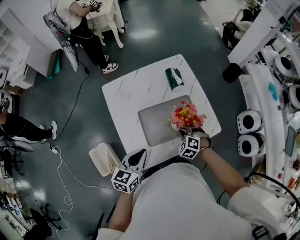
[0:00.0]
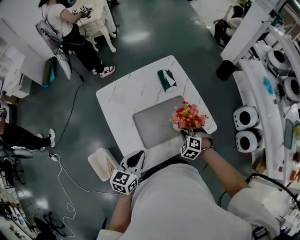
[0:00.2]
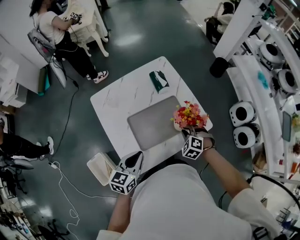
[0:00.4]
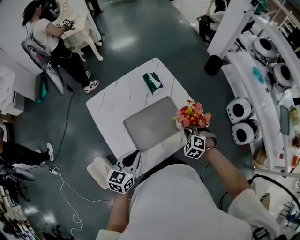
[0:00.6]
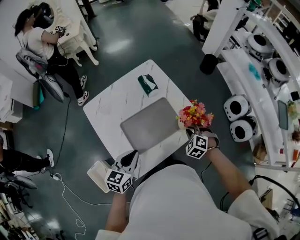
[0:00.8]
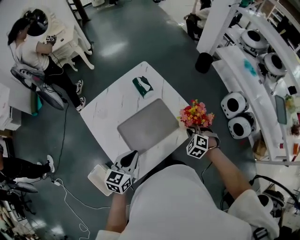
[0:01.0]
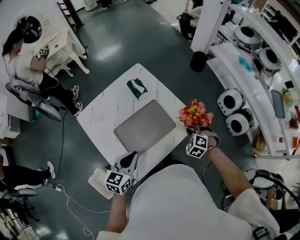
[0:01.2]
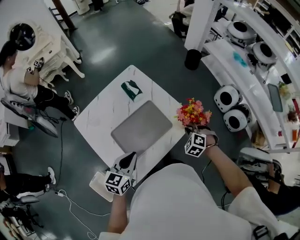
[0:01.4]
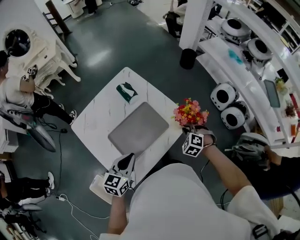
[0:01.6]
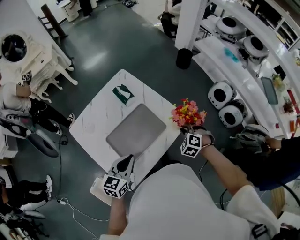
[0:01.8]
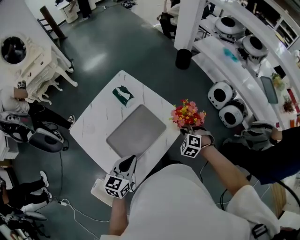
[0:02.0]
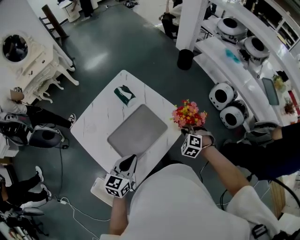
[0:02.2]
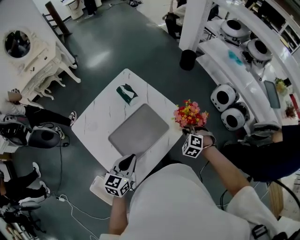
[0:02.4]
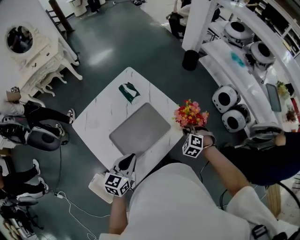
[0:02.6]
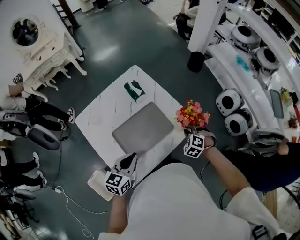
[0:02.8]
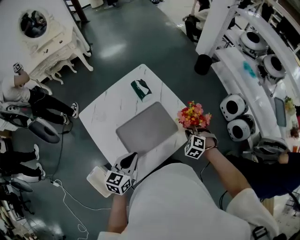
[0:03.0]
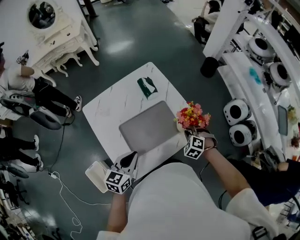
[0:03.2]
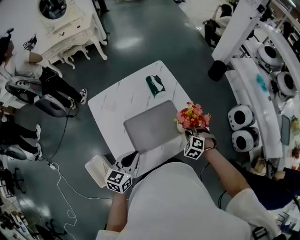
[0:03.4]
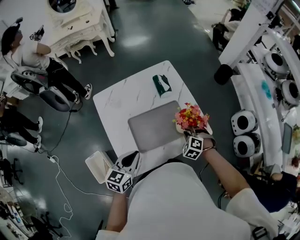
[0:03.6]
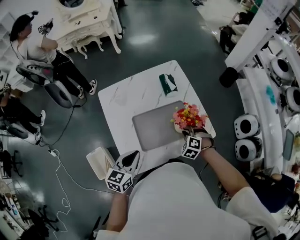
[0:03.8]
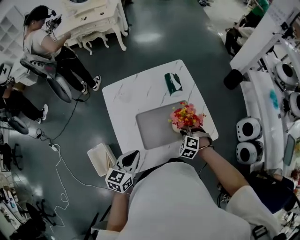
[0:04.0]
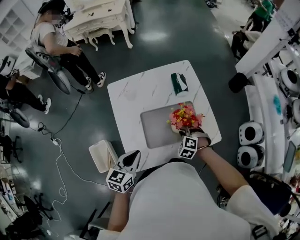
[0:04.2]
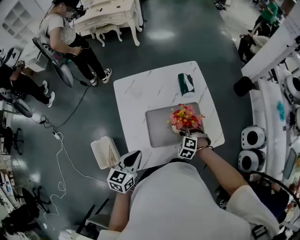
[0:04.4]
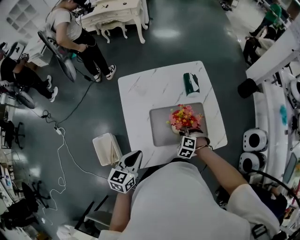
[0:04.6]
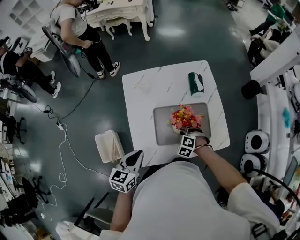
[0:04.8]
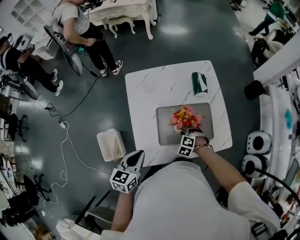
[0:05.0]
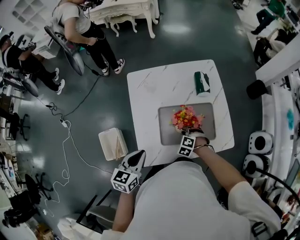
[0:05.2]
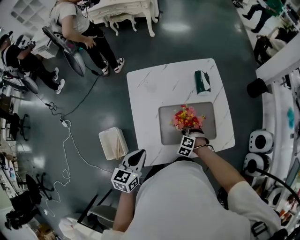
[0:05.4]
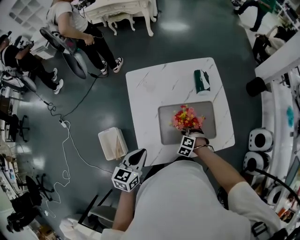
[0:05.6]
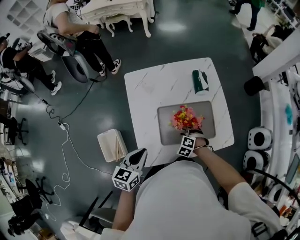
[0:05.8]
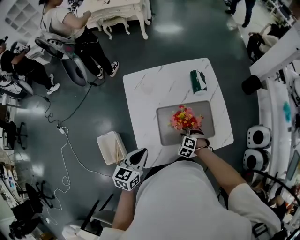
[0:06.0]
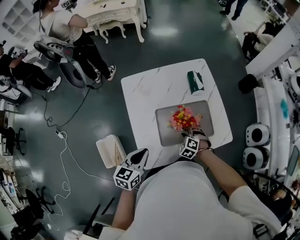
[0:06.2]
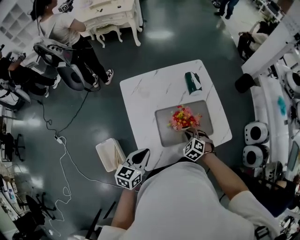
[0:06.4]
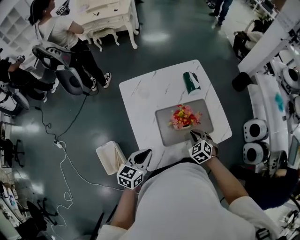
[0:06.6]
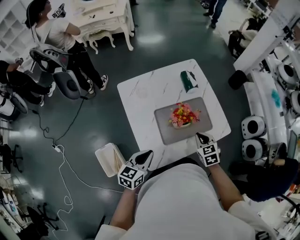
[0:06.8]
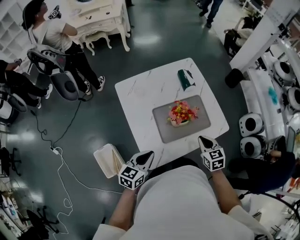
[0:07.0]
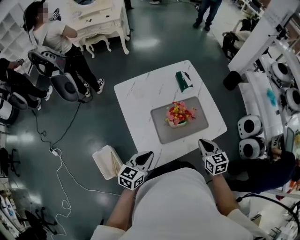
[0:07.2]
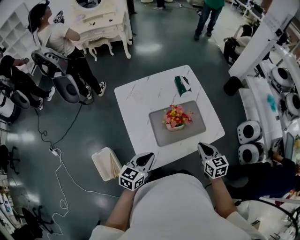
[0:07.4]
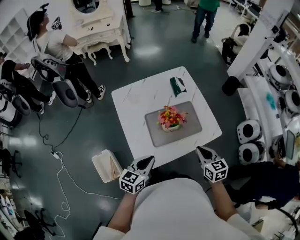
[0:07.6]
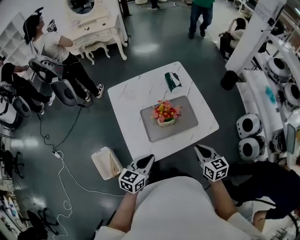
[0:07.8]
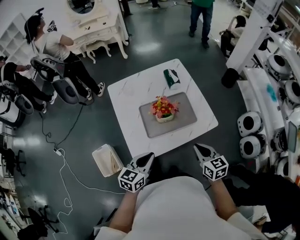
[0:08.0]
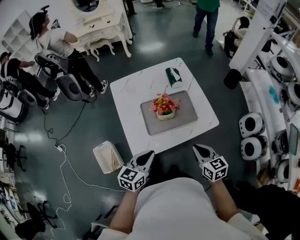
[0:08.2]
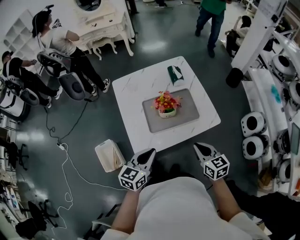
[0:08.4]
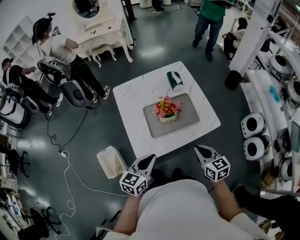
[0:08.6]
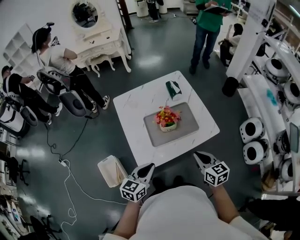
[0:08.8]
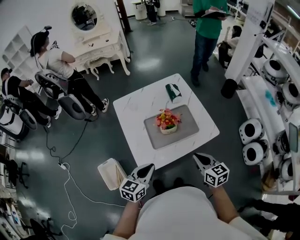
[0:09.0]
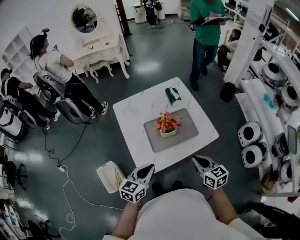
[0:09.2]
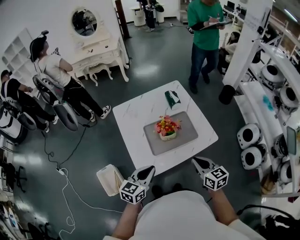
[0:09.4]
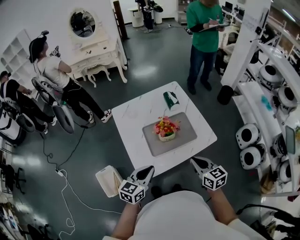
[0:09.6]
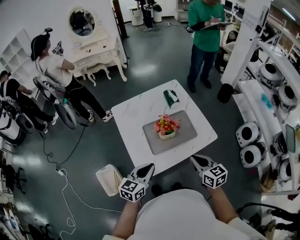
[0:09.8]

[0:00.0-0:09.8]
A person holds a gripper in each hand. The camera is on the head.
0:00.0 to 0:01.4: The right gripper shifts some 20 cm to the right, and changes its angle by approximately 20 degrees, while the left gripper travels to the right and forward by some 10 cm, and turns by approximately 20 degrees.
0:01.4 to 0:02.8: There are only small adjustments of the grippers.
0:02.8 to 0:04.2: The right gripper ends up roughly 20 cm from where it was, and swivels about 30 degrees; the left gripper changes place by some 10 cm, and turns by about 20 degrees.
0:04.2 to 0:05.6: The right gripper goes roughly 10 cm to the left and downward. Meanwhile the left gripper heads to the left, covering about 5 cm.
0:05.6 to 0:07.0: The right gripper moves upward, backward and to the right, approximately 20 cm, and twists approximately 60 degrees clockwise, seen from behind; the left gripper changes its angle by approximately 20 degrees.
0:07.0 to 0:08.4: The right gripper travels backward, to the right and upward by roughly 15 cm, while the left gripper travels to the right, backward and upward by approximately 15 cm.
0:08.4 to 0:09.8: The right gripper shifts by about 5 cm.

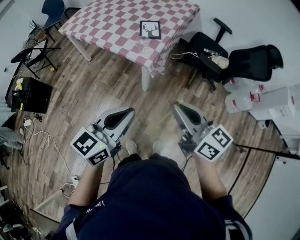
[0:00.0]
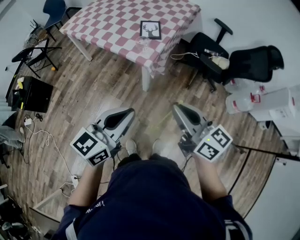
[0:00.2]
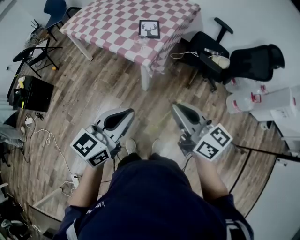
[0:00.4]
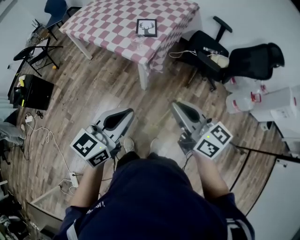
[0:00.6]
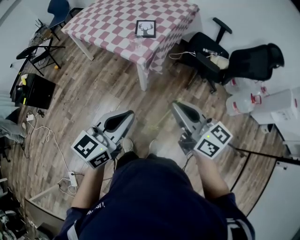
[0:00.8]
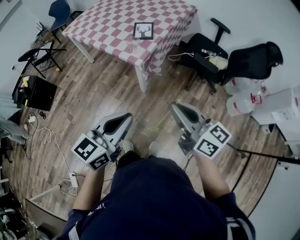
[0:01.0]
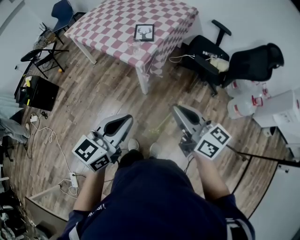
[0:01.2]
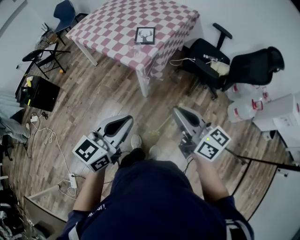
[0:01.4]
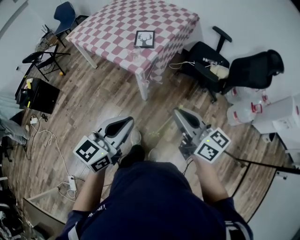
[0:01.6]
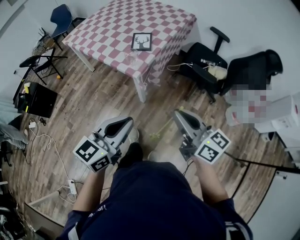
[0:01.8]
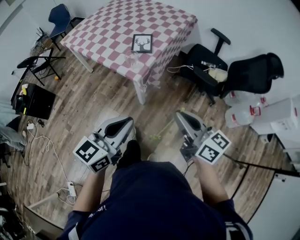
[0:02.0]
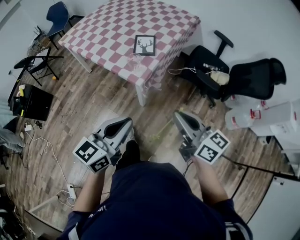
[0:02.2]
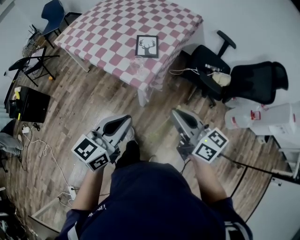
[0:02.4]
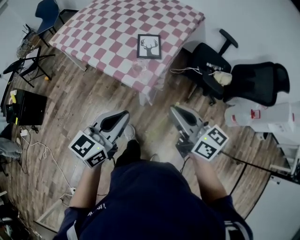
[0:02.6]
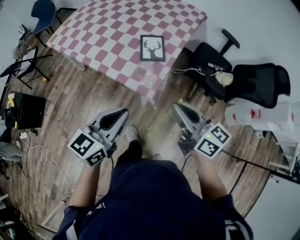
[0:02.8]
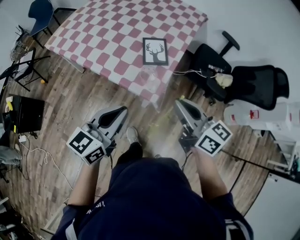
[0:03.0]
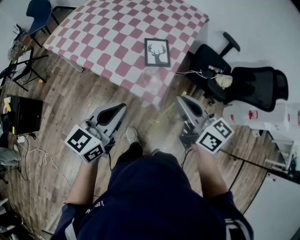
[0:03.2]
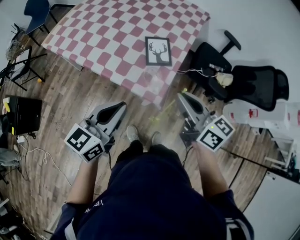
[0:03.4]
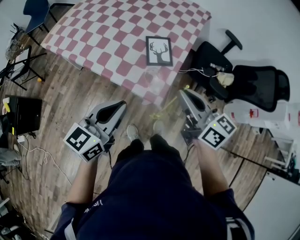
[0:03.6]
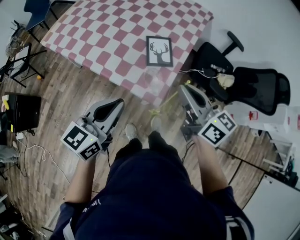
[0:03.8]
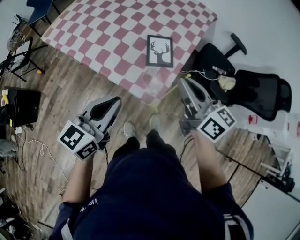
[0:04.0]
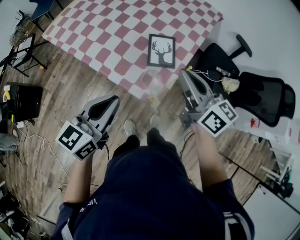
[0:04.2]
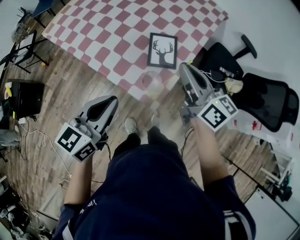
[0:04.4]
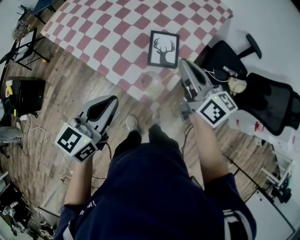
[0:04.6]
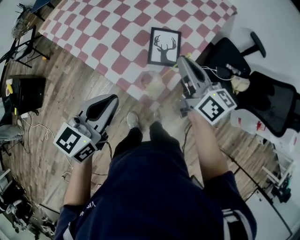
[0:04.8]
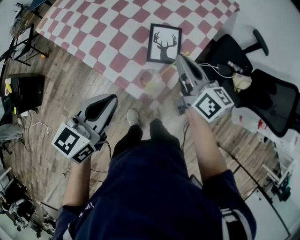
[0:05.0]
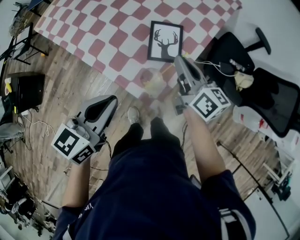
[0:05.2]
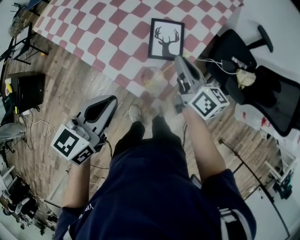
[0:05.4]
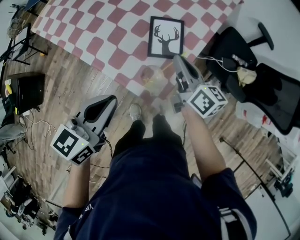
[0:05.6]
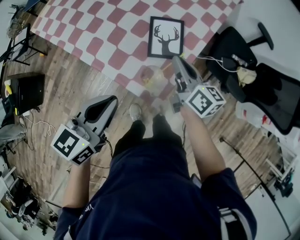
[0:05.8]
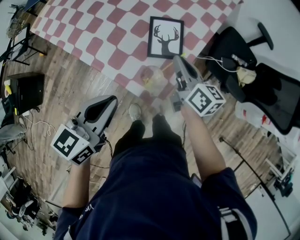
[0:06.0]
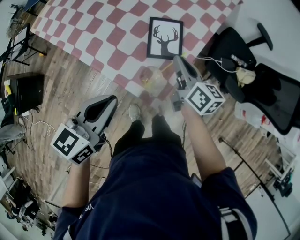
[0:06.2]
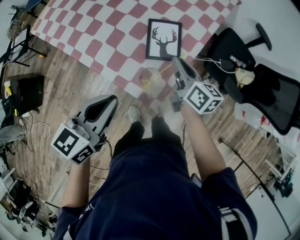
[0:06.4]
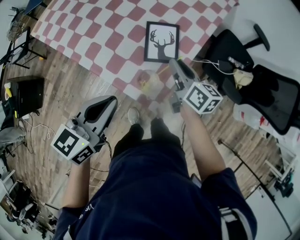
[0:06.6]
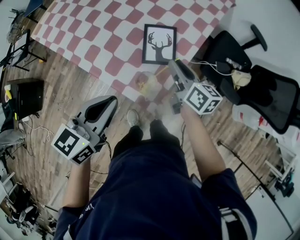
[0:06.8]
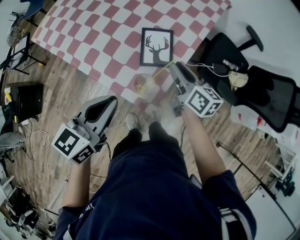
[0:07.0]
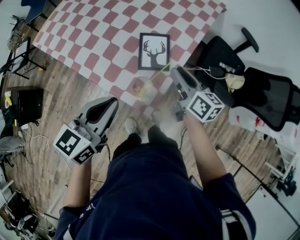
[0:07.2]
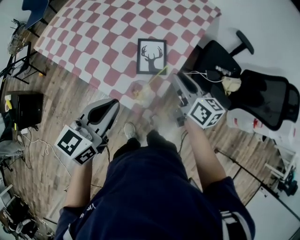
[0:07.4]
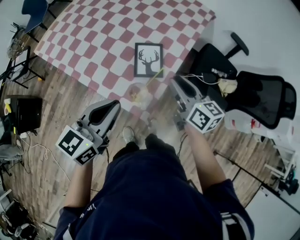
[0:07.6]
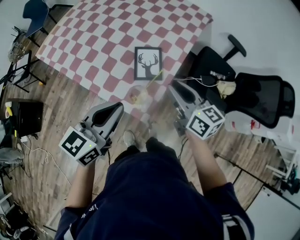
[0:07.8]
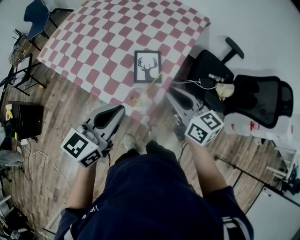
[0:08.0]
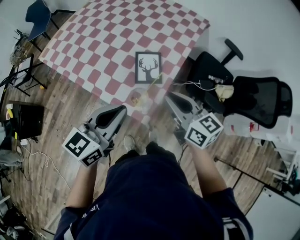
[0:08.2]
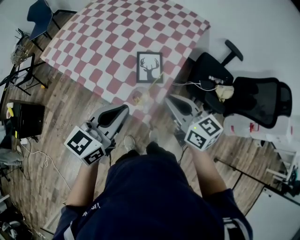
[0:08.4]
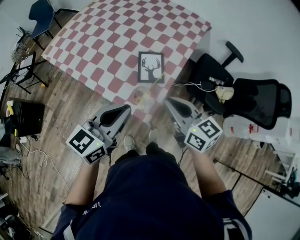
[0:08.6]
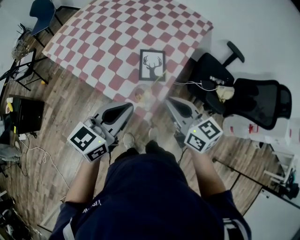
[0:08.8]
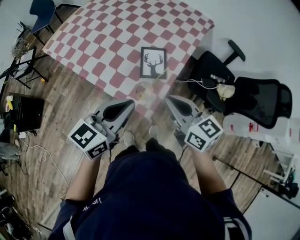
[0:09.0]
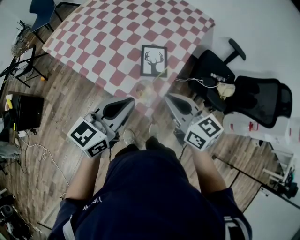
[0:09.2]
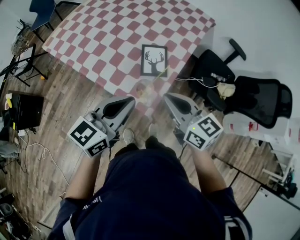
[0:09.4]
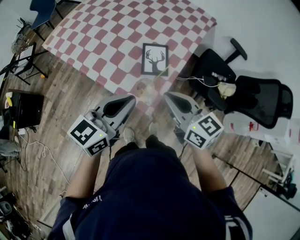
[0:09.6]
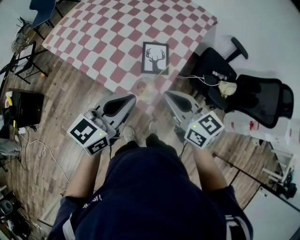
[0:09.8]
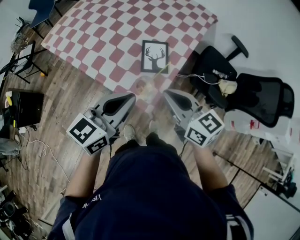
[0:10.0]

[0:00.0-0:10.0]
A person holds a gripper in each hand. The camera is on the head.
0:00.0 to 0:01.4: The grippers both shift to the right by about 10 cm.
0:01.4 to 0:02.8: Both grippers move forward and to the left, some 30 cm.
0:02.8 to 0:04.2: The left gripper travels forward and to the left by some 15 cm. Meanwhile the right gripper heads forward, covering approximately 20 cm.
0:04.2 to 0:05.8: The left gripper goes roughly 5 cm downward. The right gripper goes roughly 20 cm downward and forward.
0:05.8 to 0:07.2: The right gripper ends up some 5 cm from where it was, and opens its fingers. The left gripper moves roughly 5 cm.
0:07.2 to 0:08.6: The right gripper moves backward and upward, roughly 15 cm, turns by some 20 degrees, and closes, while the left gripper ends up some 5 cm from where it was.
0:08.6 to 0:10.0: The grippers stay close to where they were, moving slightly.

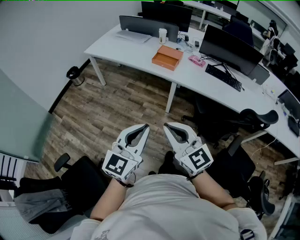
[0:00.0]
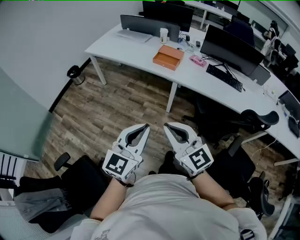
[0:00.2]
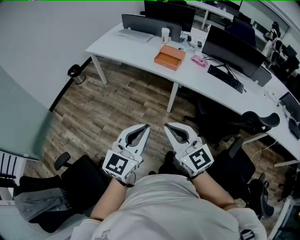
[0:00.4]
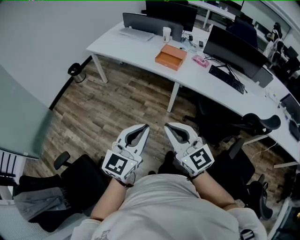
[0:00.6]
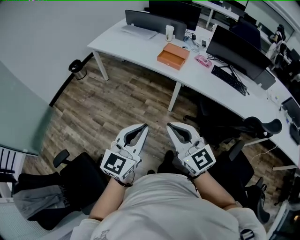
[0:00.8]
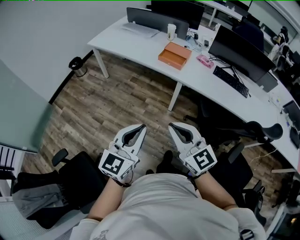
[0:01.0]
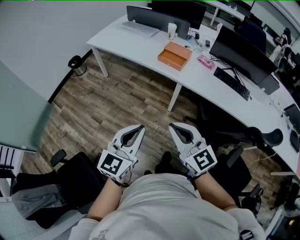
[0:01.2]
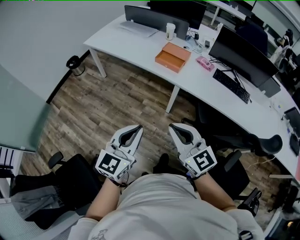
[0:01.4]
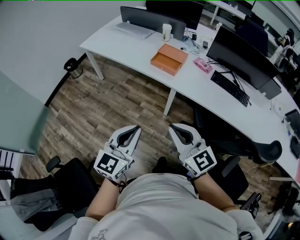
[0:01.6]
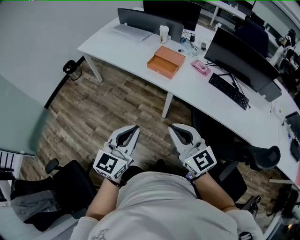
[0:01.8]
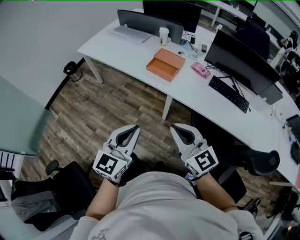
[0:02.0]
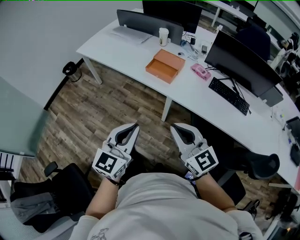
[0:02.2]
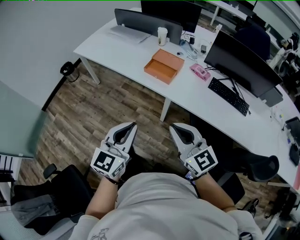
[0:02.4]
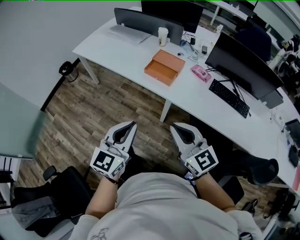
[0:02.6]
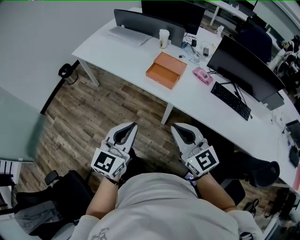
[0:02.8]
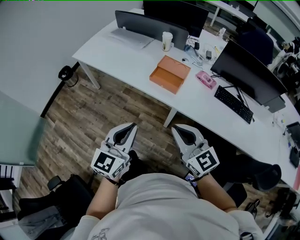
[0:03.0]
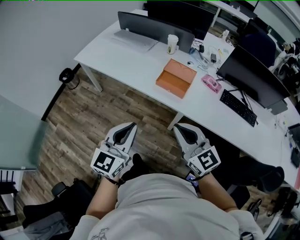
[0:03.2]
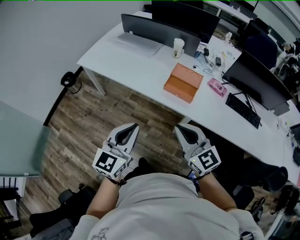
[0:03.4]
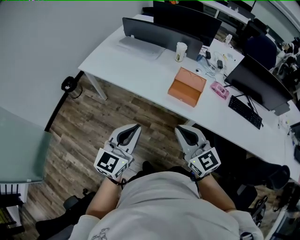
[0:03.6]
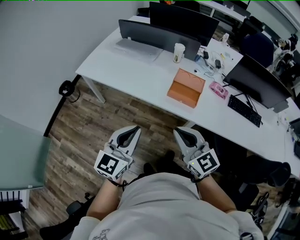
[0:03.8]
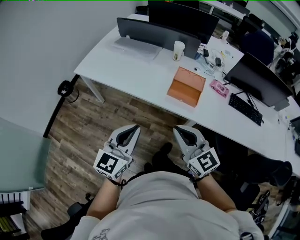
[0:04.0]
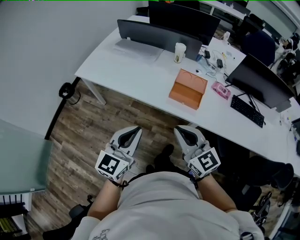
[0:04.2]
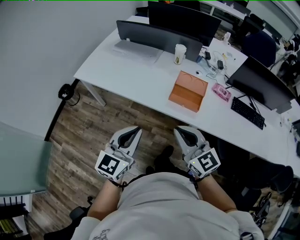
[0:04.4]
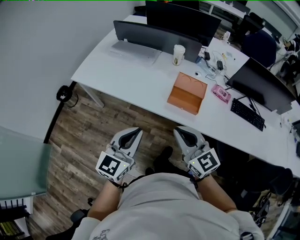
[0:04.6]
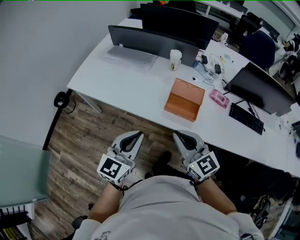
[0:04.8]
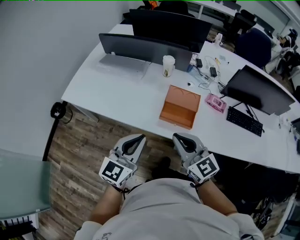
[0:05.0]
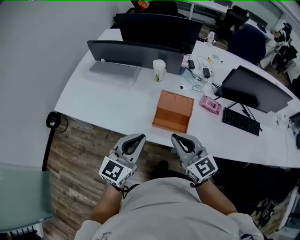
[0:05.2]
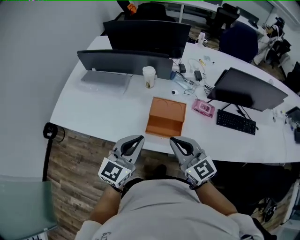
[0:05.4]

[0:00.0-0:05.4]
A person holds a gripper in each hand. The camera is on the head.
0:00.0 to 0:01.4: The right gripper goes some 15 cm forward and to the right. Meanwhile the left gripper heads forward, covering about 15 cm.
0:01.4 to 0:02.8: The left gripper goes roughly 20 cm forward, while the right gripper moves forward and to the right, approximately 25 cm.
0:02.8 to 0:04.0: Both grippers travel together to the left and forward, approximately 30 cm.
0:04.0 to 0:05.4: Both grippers travel together forward and to the right, approximately 30 cm.
